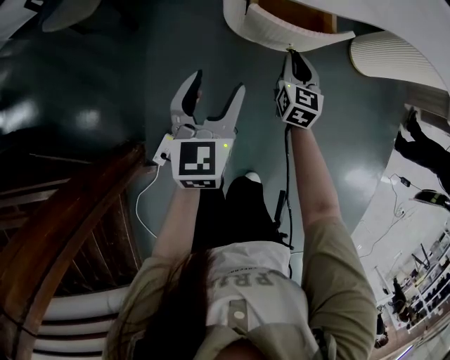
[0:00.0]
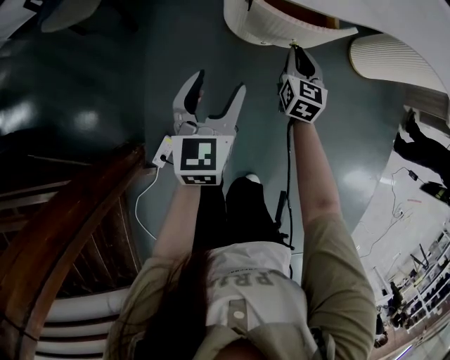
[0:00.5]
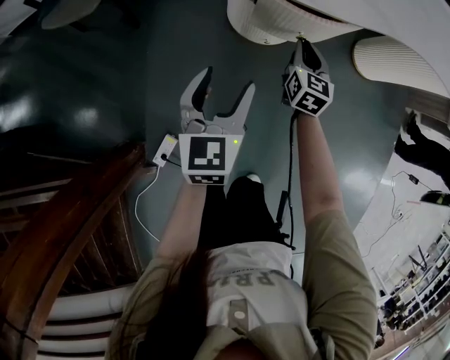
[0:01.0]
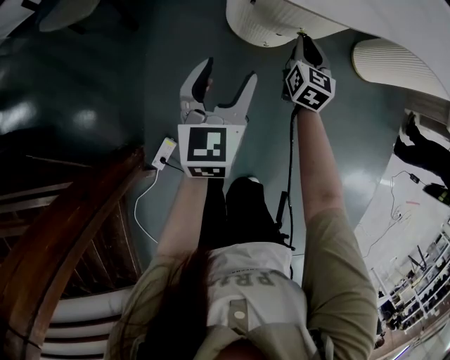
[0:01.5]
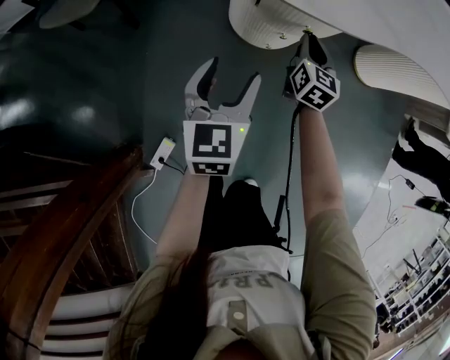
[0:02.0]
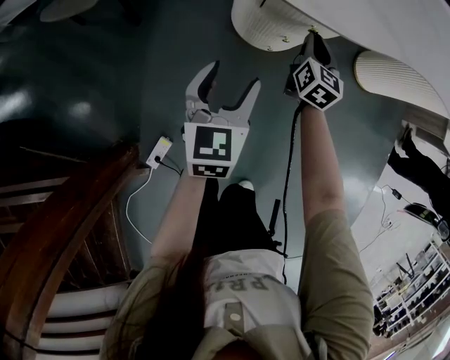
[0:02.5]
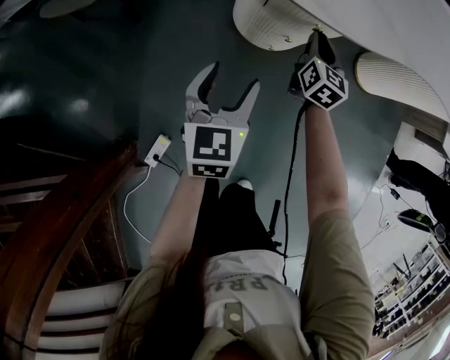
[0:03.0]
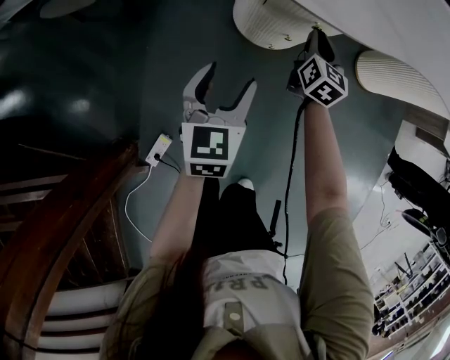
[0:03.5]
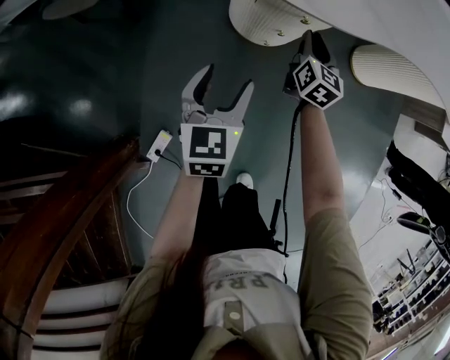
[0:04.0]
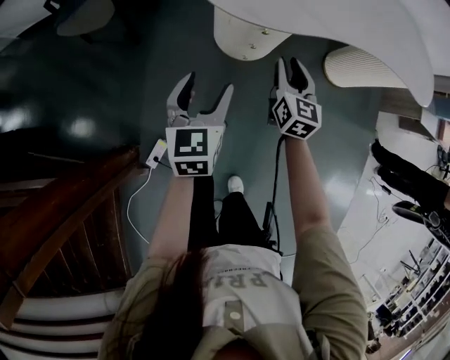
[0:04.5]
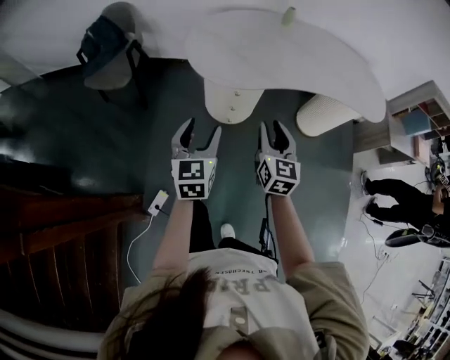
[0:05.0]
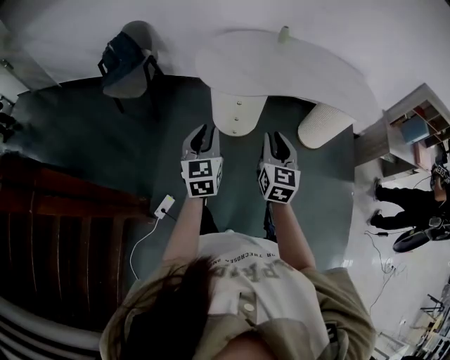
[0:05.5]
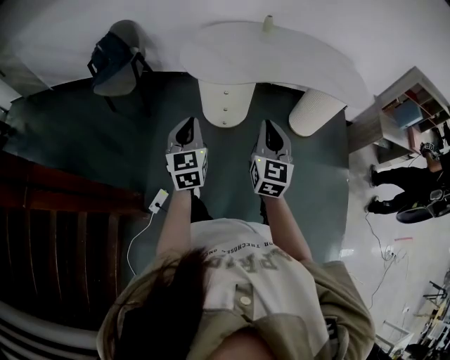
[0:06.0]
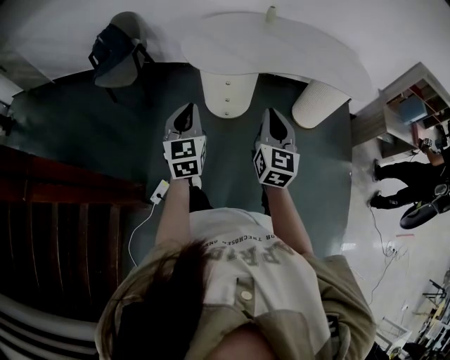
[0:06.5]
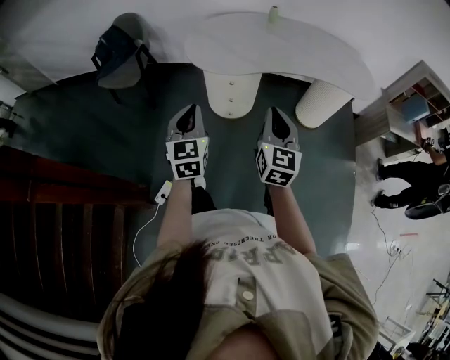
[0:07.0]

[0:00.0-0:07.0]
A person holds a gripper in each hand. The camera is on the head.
0:00.0 to 0:02.0: The left gripper travels forward by approximately 5 cm; the right gripper heads forward, covering approximately 10 cm.
0:02.0 to 0:03.5: The grippers move only a little.
0:03.5 to 0:05.0: Both grippers move upward and backward, approximately 40 cm.
0:05.0 to 0:07.0: The right gripper travels backward, upward and to the right by about 15 cm, and closes. The left gripper shifts roughly 10 cm backward and upward, and closes its fingers.

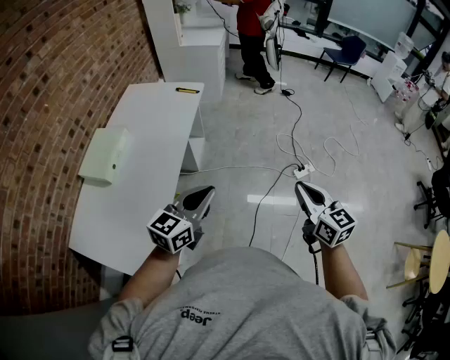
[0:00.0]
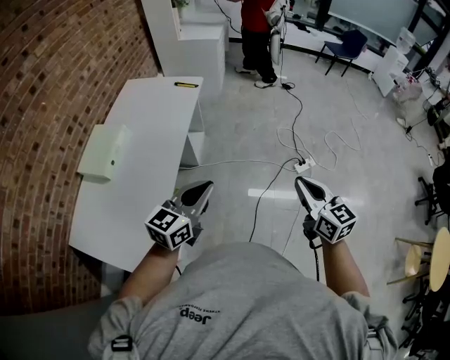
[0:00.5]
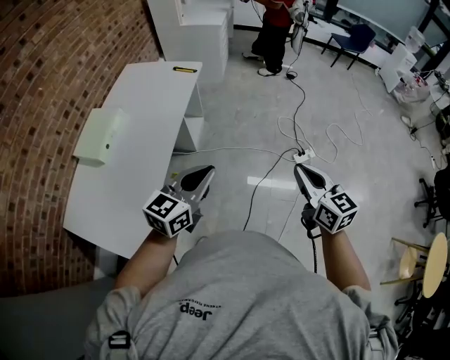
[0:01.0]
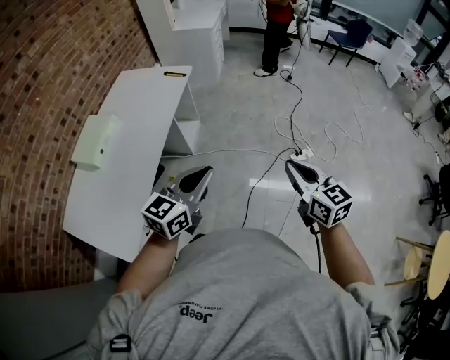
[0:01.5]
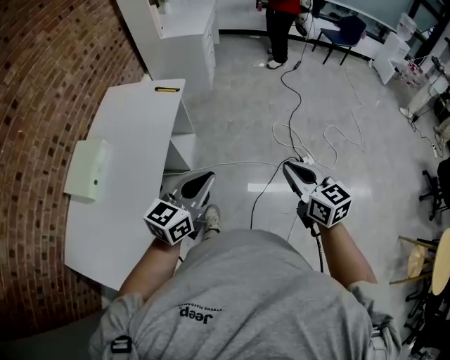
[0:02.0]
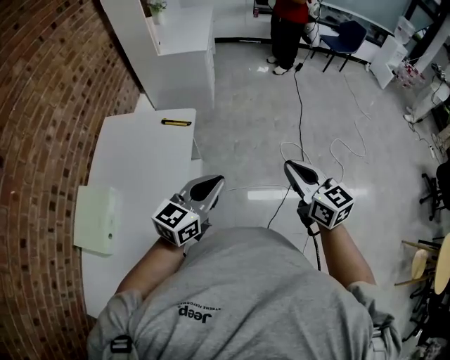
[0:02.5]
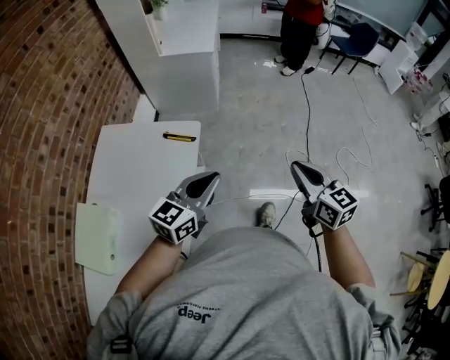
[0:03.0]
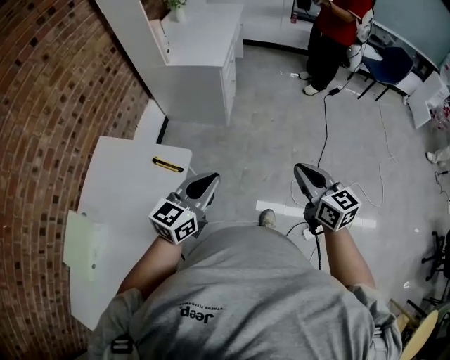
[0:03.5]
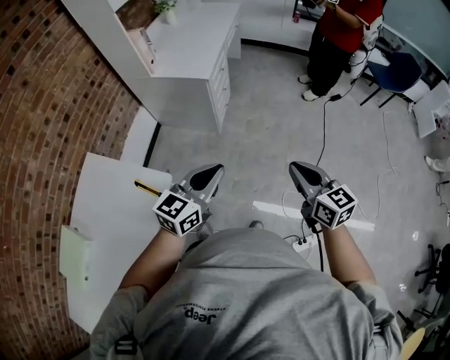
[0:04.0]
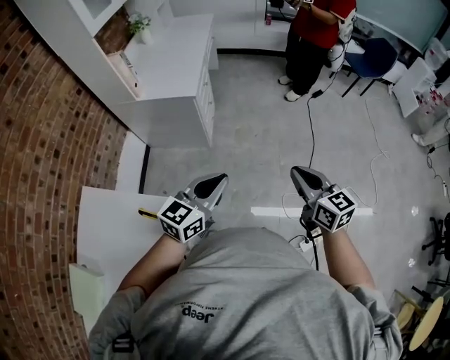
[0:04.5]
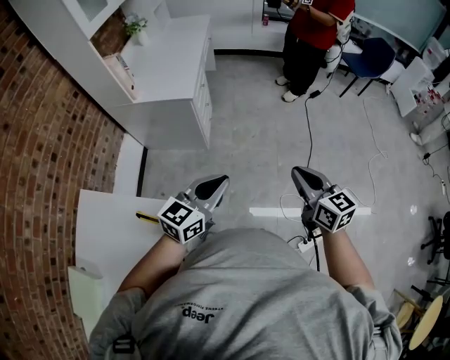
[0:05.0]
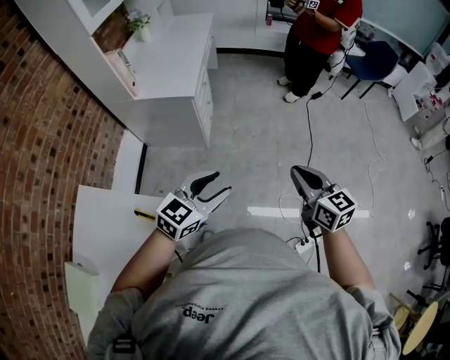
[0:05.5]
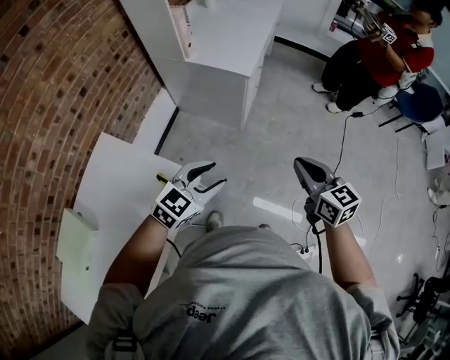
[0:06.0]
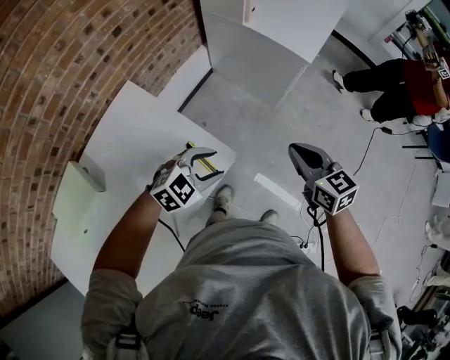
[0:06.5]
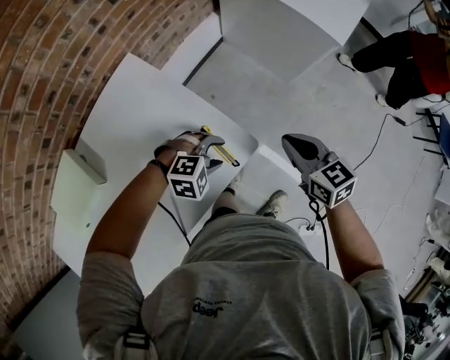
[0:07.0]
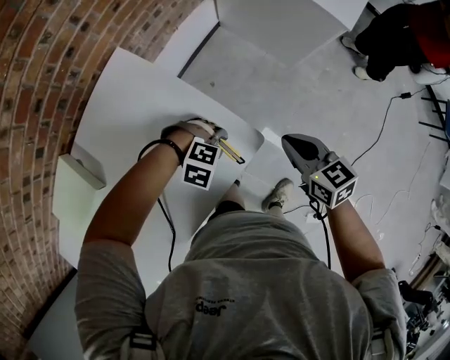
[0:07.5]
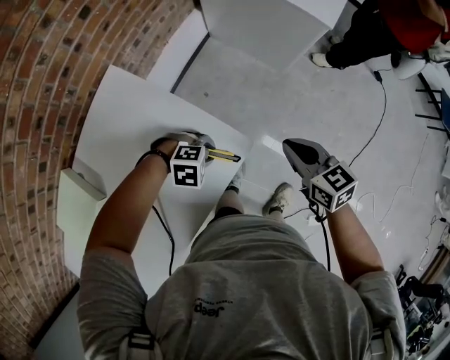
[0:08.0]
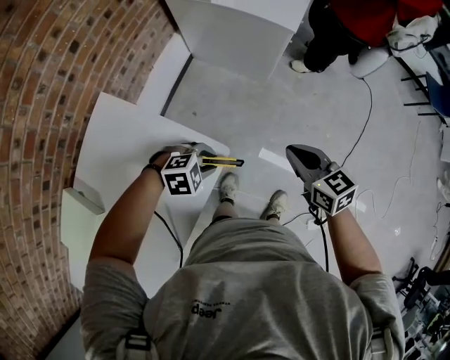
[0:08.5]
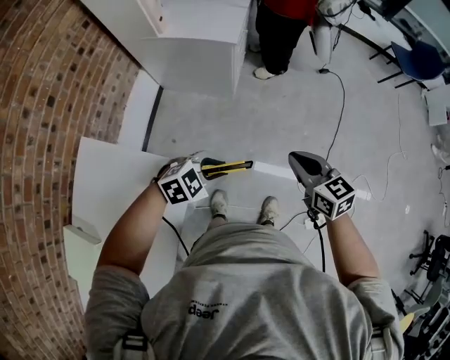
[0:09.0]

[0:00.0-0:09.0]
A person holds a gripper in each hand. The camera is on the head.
0:00.0 to 0:02.0: The right gripper heads forward, covering roughly 15 cm. The left gripper travels forward and to the right by about 15 cm.
0:02.0 to 0:04.5: The pair of grippers is taken forward, about 70 cm.
0:04.5 to 0:07.0: The right gripper changes place by roughly 40 cm, and changes its angle by roughly 50 degrees. The left gripper changes place by roughly 40 cm, angles its fingers downward, by approximately 50 degrees, and opens its fingers.
0:07.0 to 0:09.0: The left gripper shifts by approximately 25 cm, changes its angle by approximately 20 degrees, and closes. Meanwhile the right gripper ends up approximately 25 cm from where it was, and swivels some 30 degrees.

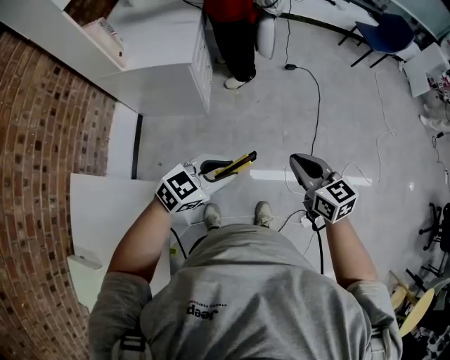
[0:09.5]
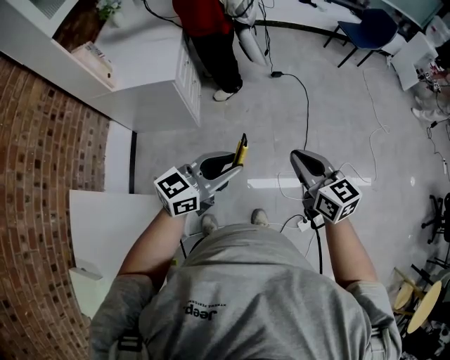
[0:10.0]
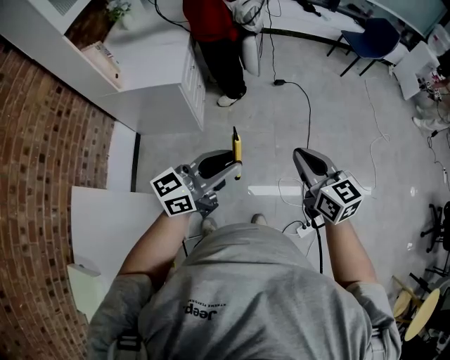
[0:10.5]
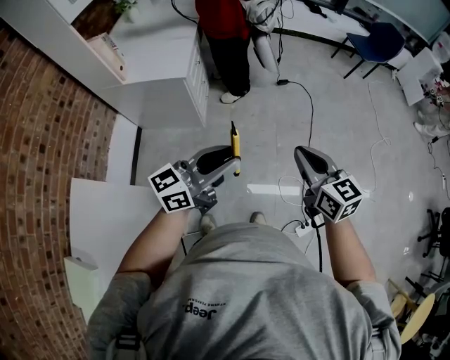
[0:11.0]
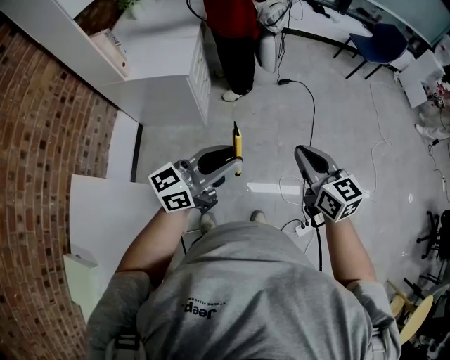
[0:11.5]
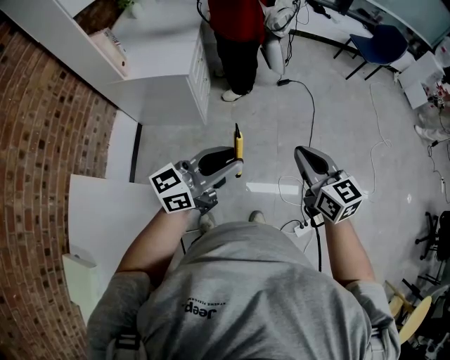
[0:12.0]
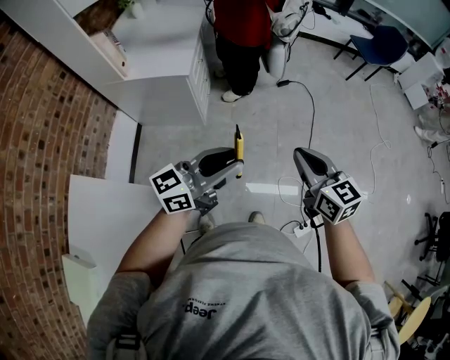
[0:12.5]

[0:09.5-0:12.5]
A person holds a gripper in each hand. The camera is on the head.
0:09.5 to 0:11.0: The right gripper moves upward, approximately 10 cm; the left gripper shifts about 15 cm upward, and points its fingers roughly 40 degrees further upward.
0:11.0 to 0:12.5: There are only small adjustments of the grippers.

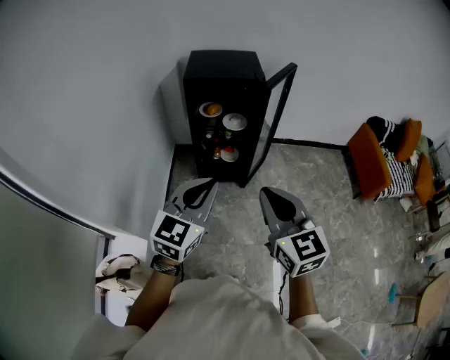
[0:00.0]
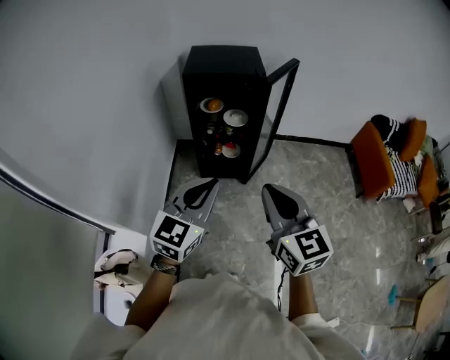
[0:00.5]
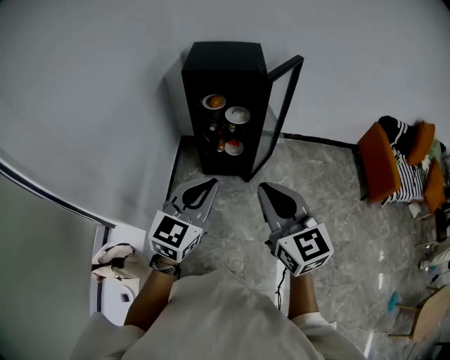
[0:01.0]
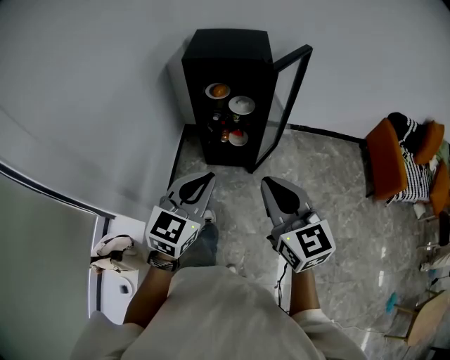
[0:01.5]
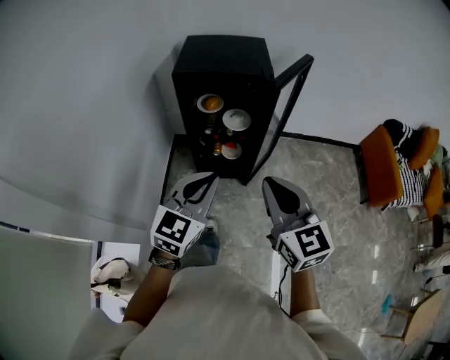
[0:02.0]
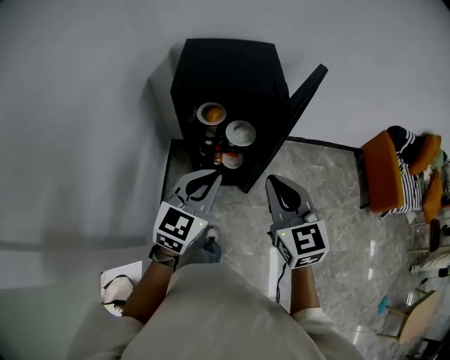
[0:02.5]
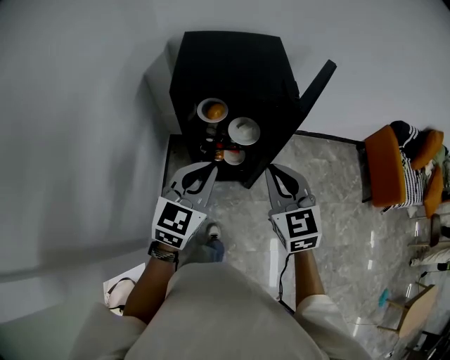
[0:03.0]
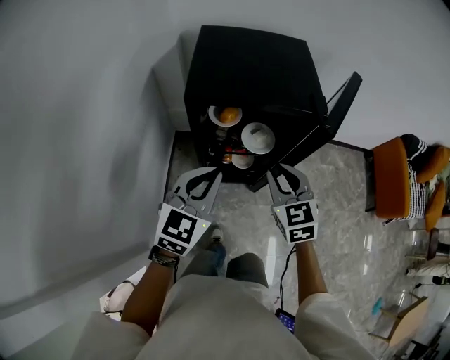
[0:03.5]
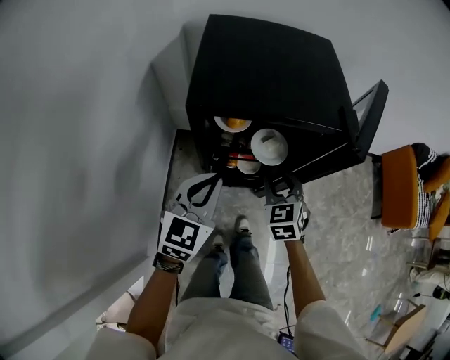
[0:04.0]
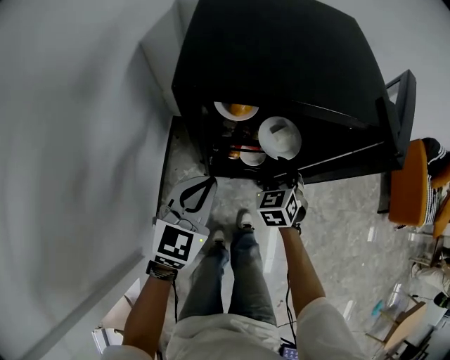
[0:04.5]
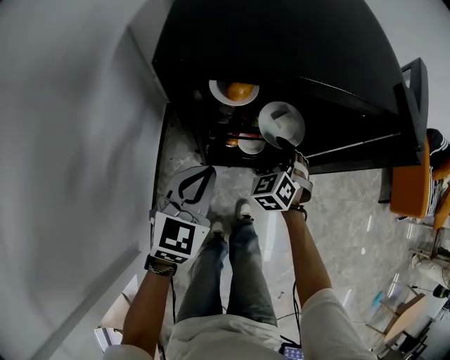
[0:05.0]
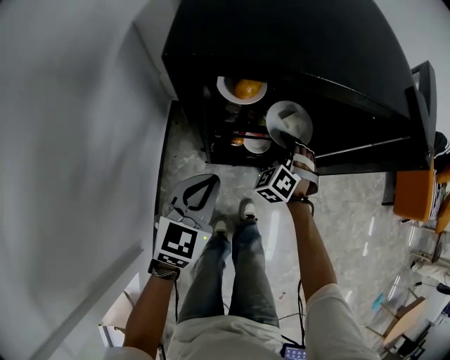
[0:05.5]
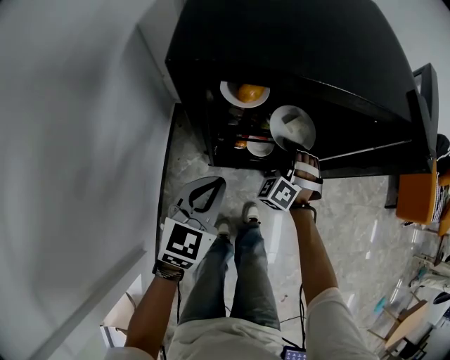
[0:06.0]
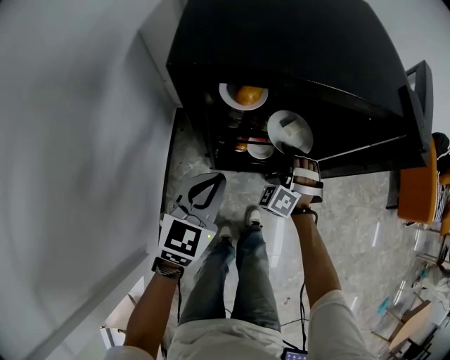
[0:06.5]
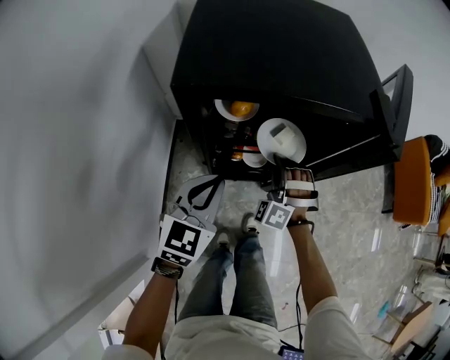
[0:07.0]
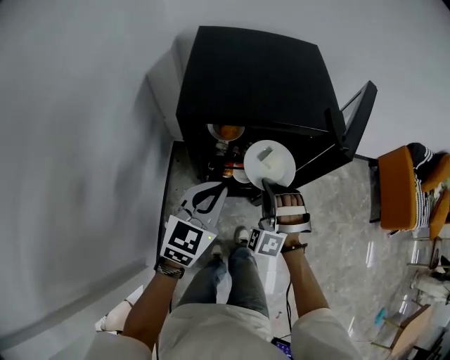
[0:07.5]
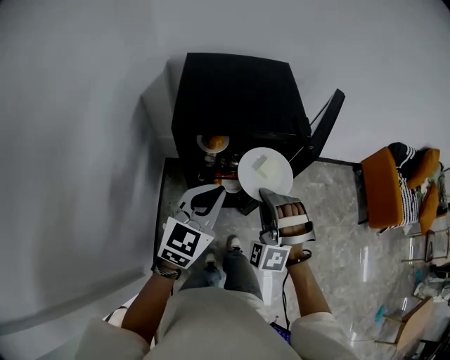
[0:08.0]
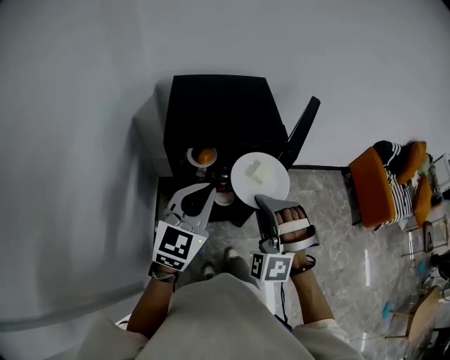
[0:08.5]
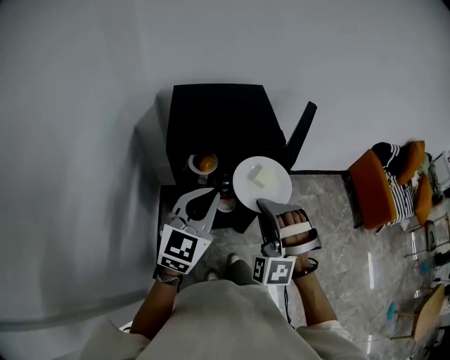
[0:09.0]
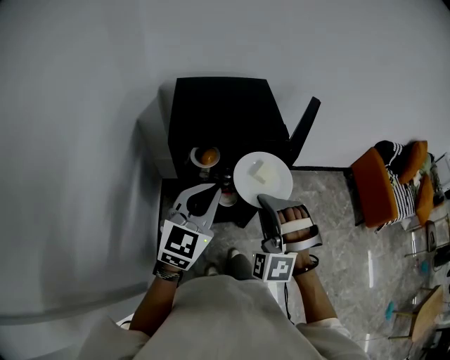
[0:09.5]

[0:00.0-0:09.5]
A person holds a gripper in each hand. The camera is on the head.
0:00.0 to 0:02.0: The two grippers go roughly 15 cm forward.
0:02.0 to 0:04.0: The left gripper moves forward, to the left and downward, roughly 35 cm; the right gripper travels forward and downward by roughly 50 cm, turns by about 40 degrees, and opens.
0:04.0 to 0:05.5: The right gripper travels downward and forward by some 20 cm, and turns by some 40 degrees, while the left gripper travels downward by about 15 cm.
0:05.5 to 0:07.5: The left gripper heads upward, covering about 15 cm. Meanwhile the right gripper is displaced upward and backward by approximately 25 cm, swivels about 30 degrees, and closes its fingers.
0:07.5 to 0:09.5: The left gripper heads upward, covering some 15 cm; the right gripper goes roughly 25 cm upward and backward.
